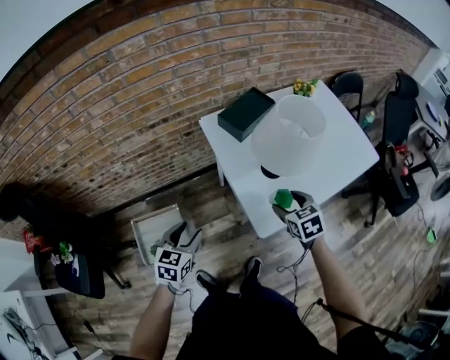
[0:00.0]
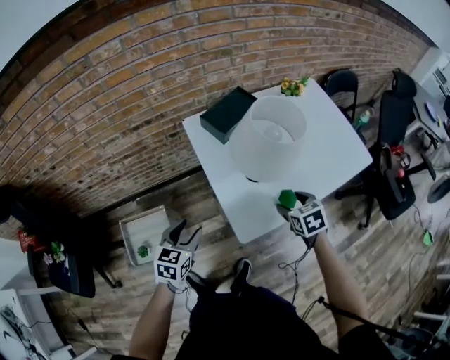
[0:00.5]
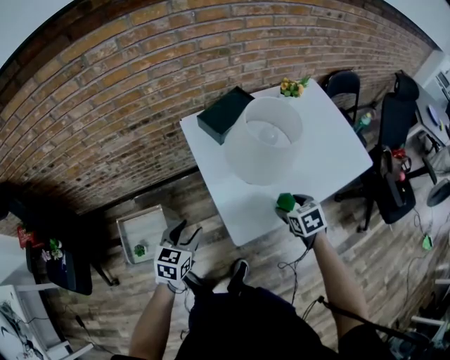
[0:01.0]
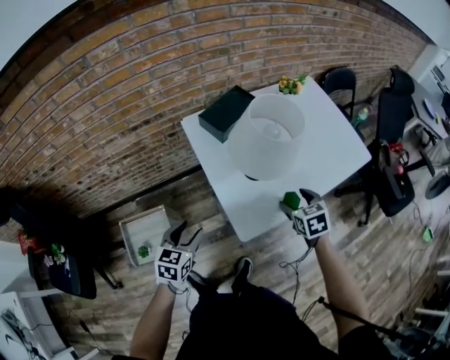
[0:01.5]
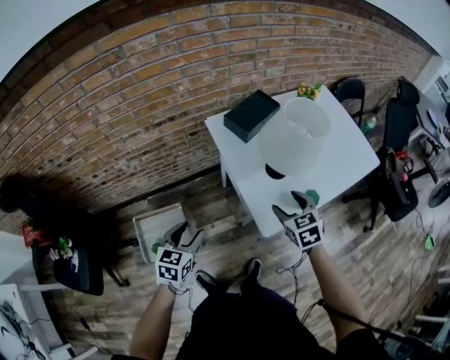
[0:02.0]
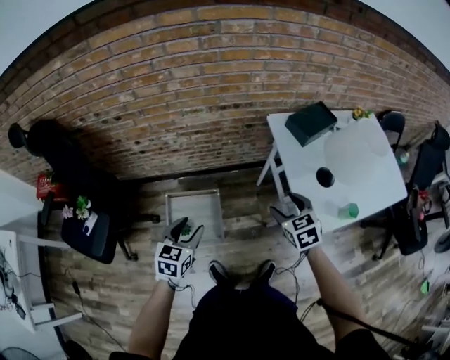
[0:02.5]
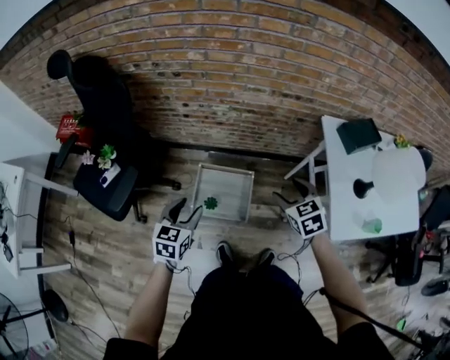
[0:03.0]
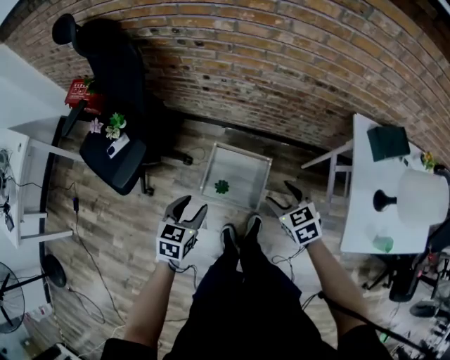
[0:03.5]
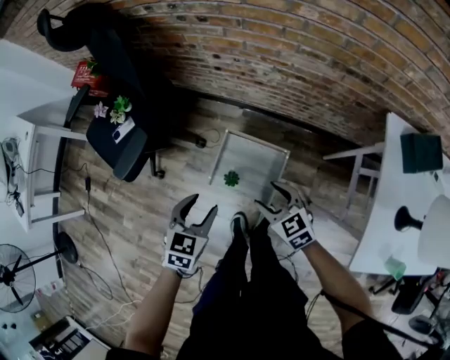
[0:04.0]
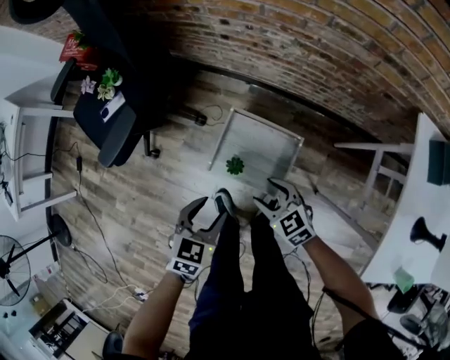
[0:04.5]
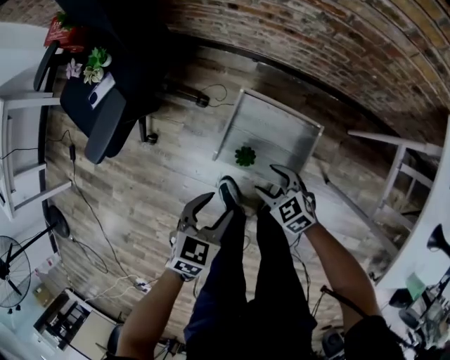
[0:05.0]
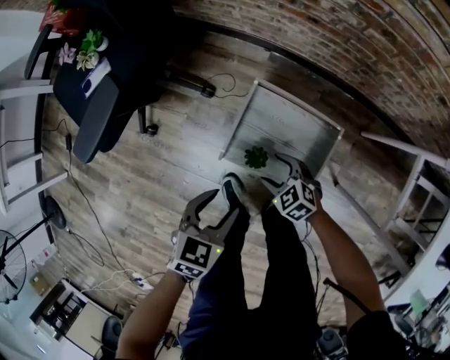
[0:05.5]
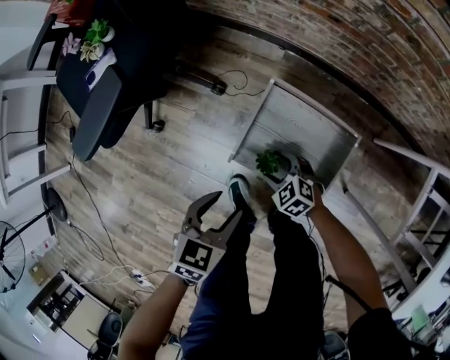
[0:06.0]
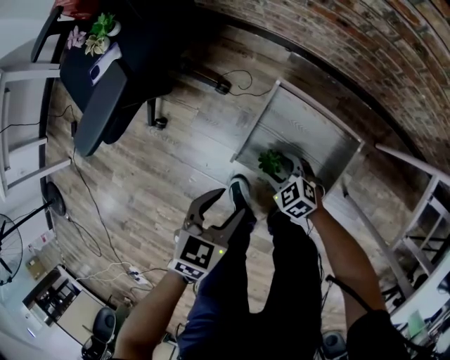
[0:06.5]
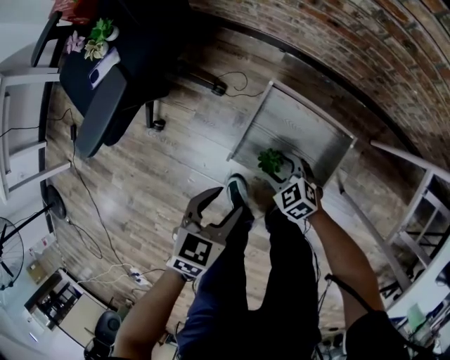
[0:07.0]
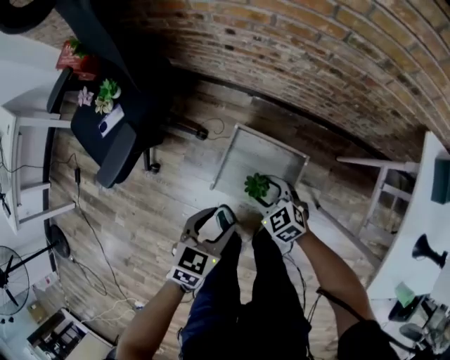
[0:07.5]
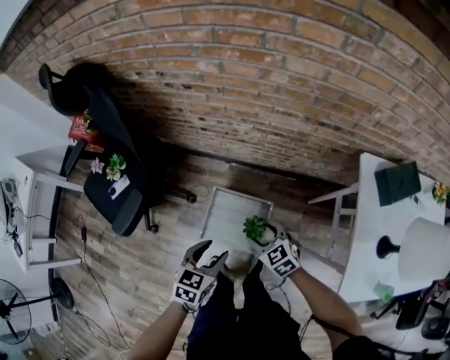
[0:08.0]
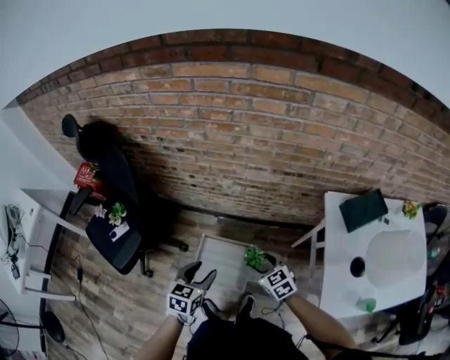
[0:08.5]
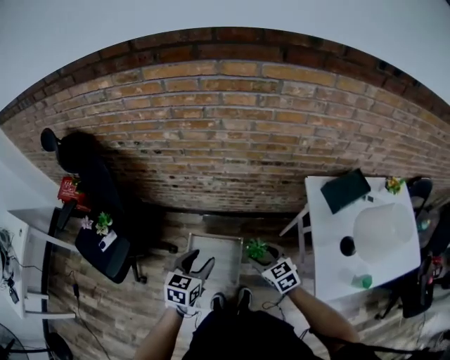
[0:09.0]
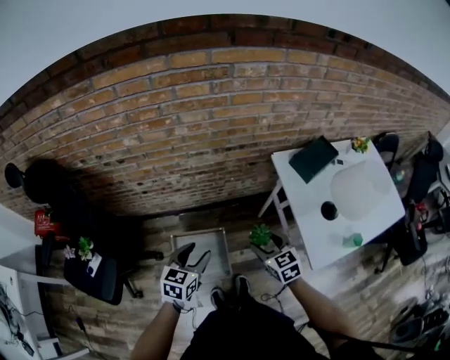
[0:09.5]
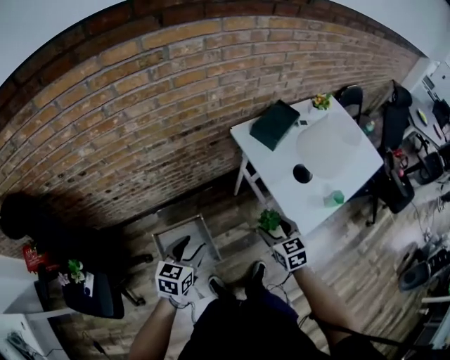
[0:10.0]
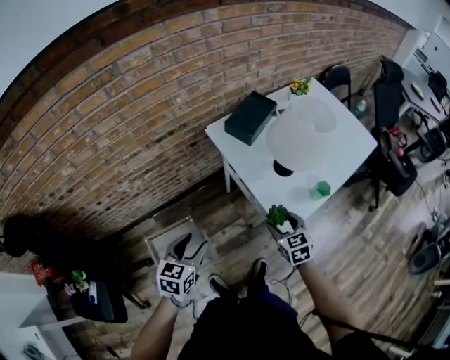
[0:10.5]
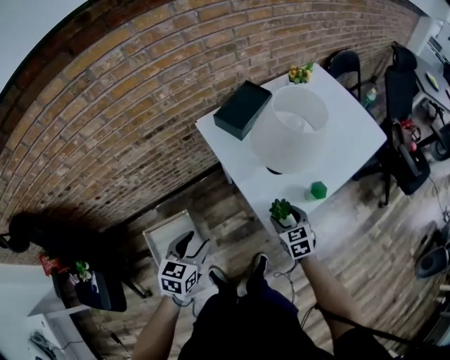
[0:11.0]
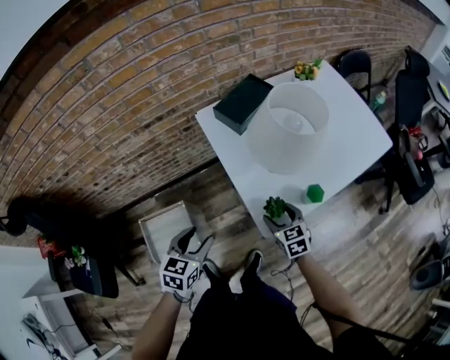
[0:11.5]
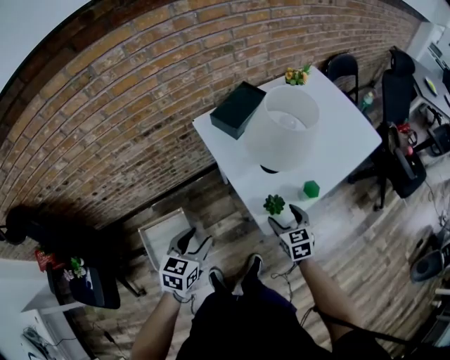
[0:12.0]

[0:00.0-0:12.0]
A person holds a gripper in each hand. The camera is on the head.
0:00.0 to 0:02.0: The right gripper moves approximately 10 cm to the right and comes back, while the left gripper goes to the right and returns, some 10 cm each way.
0:02.0 to 0:04.0: The right gripper changes place by some 60 cm, and turns by about 60 degrees; the left gripper ends up about 40 cm from where it was, and swivels approximately 40 degrees.
0:04.0 to 0:06.0: The grippers both shift downward by roughly 35 cm. The right gripper rotates some 30 degrees.
0:06.0 to 0:08.0: The left gripper travels upward and to the right by approximately 35 cm. The right gripper goes approximately 40 cm upward, and turns by some 30 degrees.
0:08.0 to 0:10.0: The right gripper shifts by approximately 35 cm, and rotates roughly 60 degrees. The left gripper changes place by approximately 20 cm, and turns by roughly 30 degrees.
0:10.0 to 0:12.0: The two grippers go some 25 cm to the right.

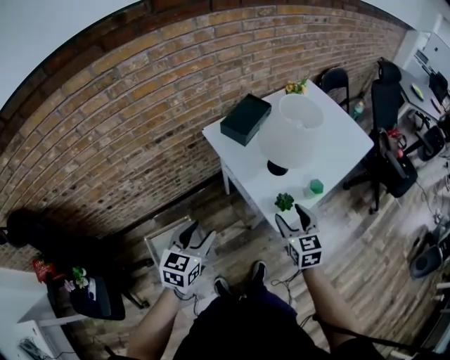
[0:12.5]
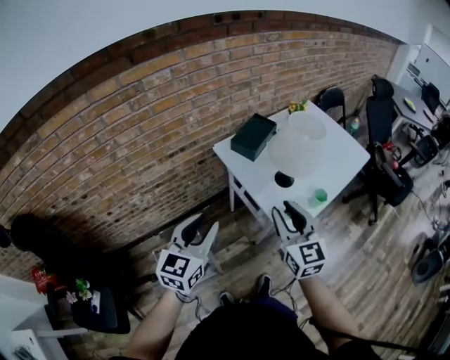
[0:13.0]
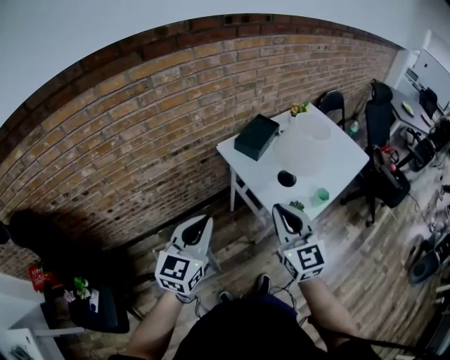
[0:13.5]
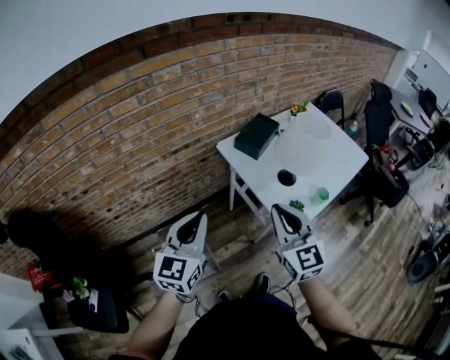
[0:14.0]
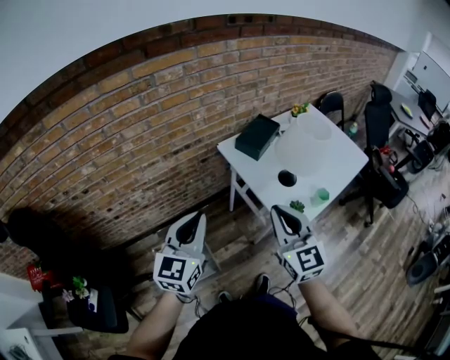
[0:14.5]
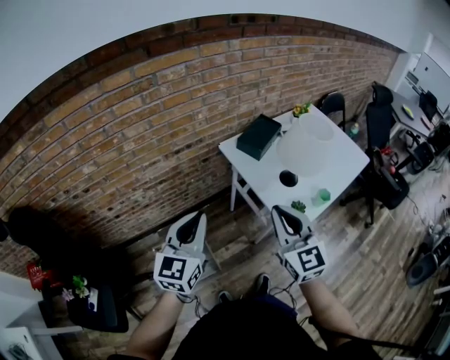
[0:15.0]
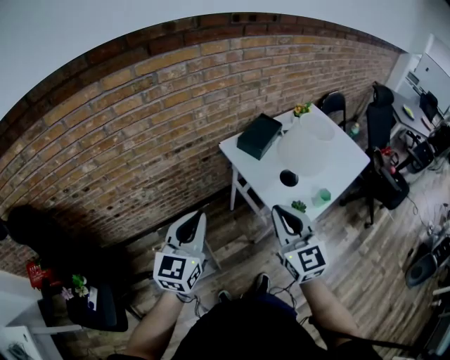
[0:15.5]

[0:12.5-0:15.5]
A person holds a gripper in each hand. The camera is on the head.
0:12.5 to 0:14.0: Both grippers travel together upward and to the left, roughly 20 cm. The left gripper changes its angle by roughly 20 degrees, and closes up, while the right gripper swivels roughly 20 degrees, and closes.
0:14.0 to 0:15.5: The grippers stay close to where they were, moving slightly.

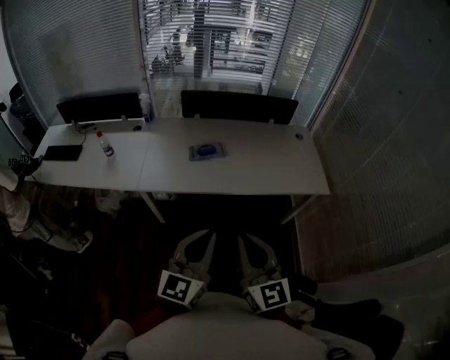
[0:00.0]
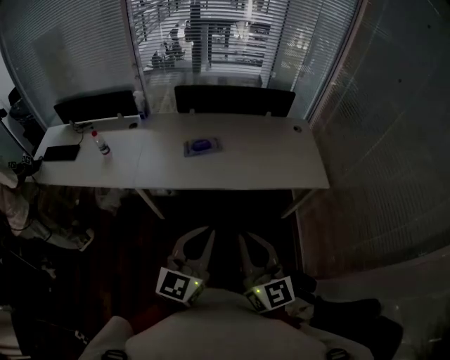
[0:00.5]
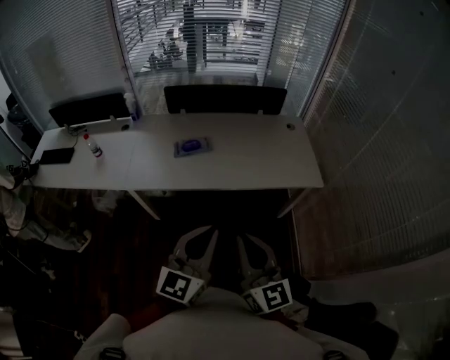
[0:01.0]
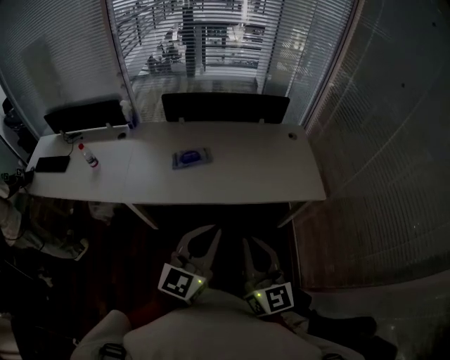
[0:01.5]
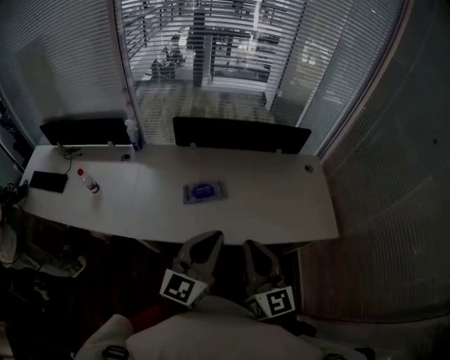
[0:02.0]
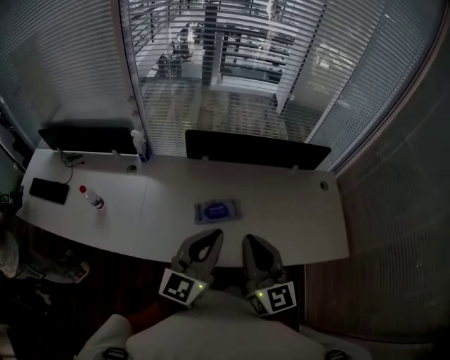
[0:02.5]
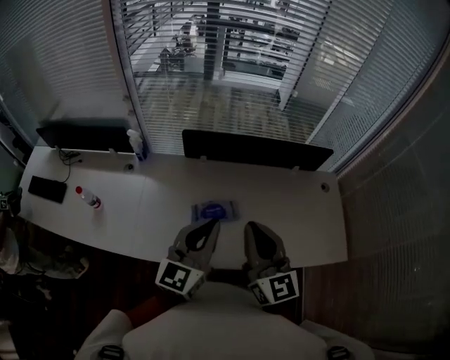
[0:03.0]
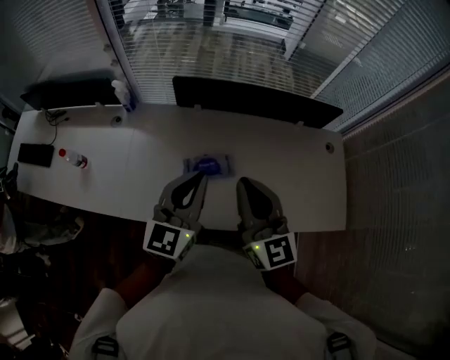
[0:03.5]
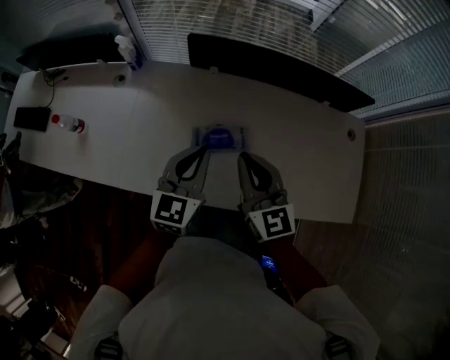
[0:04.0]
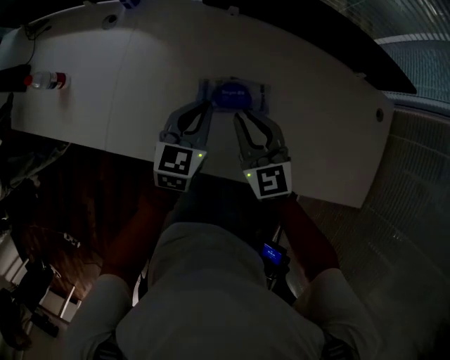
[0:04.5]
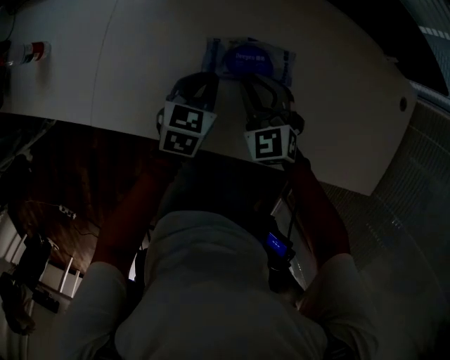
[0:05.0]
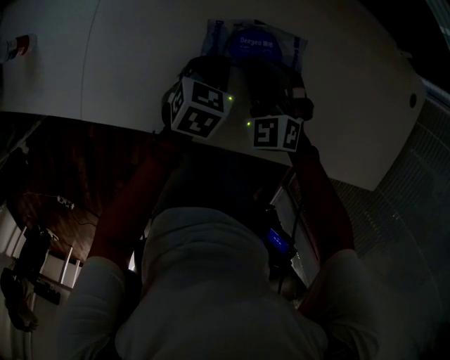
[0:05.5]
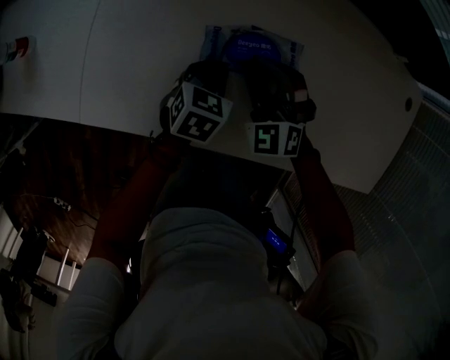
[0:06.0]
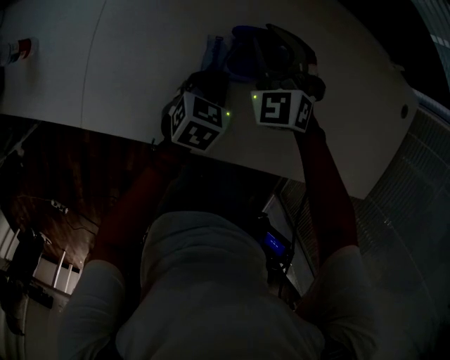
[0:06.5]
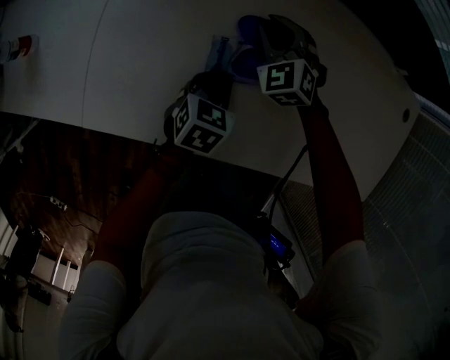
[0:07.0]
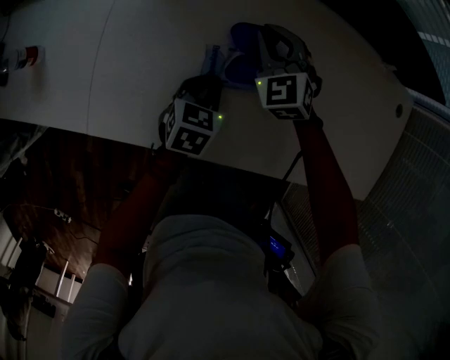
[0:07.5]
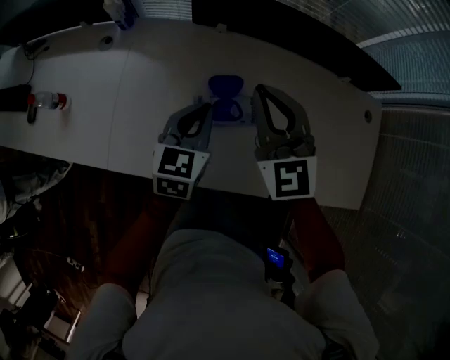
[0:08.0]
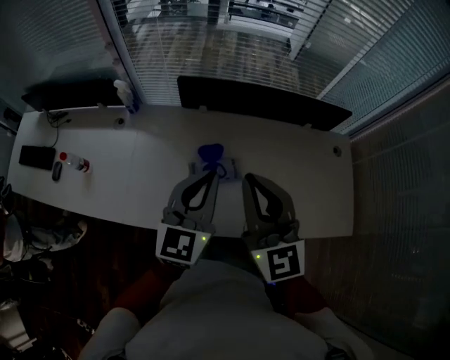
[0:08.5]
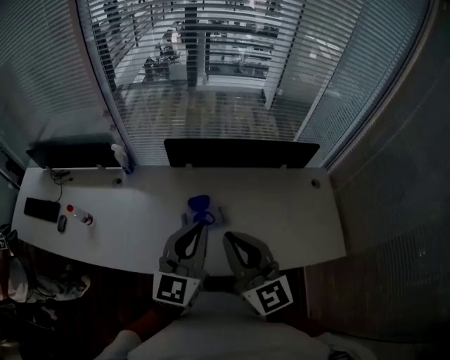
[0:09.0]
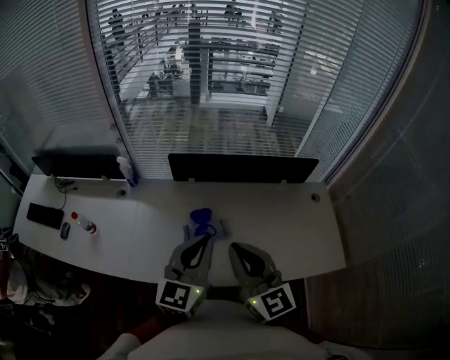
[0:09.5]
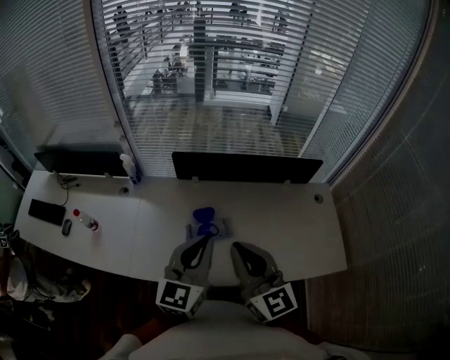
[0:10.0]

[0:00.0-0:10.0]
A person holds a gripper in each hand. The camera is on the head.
0:00.0 to 0:02.0: Both grippers travel together forward, approximately 25 cm.
0:02.0 to 0:04.0: The grippers both shift forward and downward by roughly 30 cm. The left gripper rotates some 20 degrees; the right gripper swivels some 20 degrees.
0:04.0 to 0:06.0: The grippers both shift downward by approximately 30 cm. The right gripper twists about 50 degrees counterclockwise, seen from behind, and opens up. The left gripper points its fingers some 40 degrees further downward.
0:06.0 to 0:08.0: Both grippers move upward, some 25 cm. The right gripper swivels some 40 degrees, and closes; the left gripper changes its angle by about 30 degrees.
0:08.0 to 0:10.0: The right gripper travels backward and upward by some 25 cm, and turns by approximately 20 degrees. Meanwhile the left gripper goes roughly 30 cm upward and backward, and changes its angle by some 30 degrees.

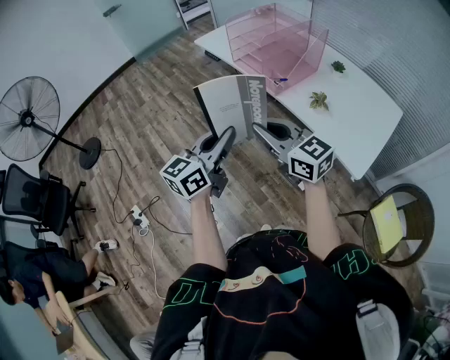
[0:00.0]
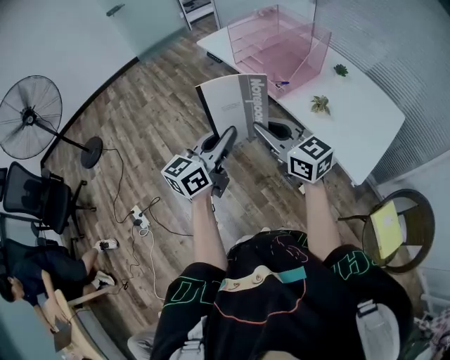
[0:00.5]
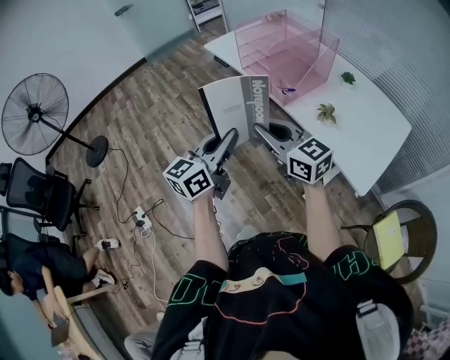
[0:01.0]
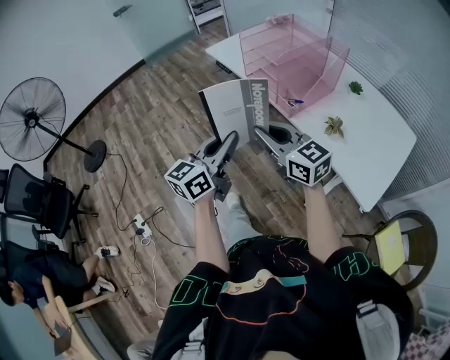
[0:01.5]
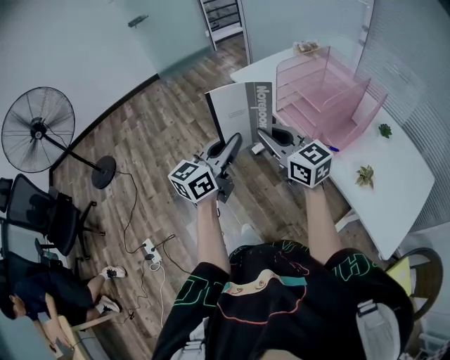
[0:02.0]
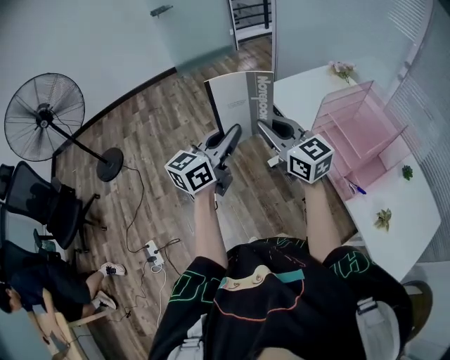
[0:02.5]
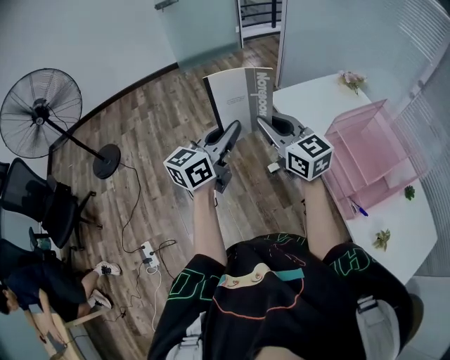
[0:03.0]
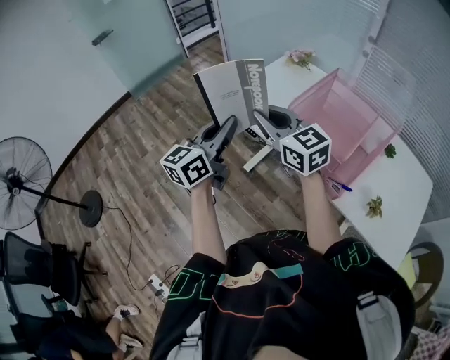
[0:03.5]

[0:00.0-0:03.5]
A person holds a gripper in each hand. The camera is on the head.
0:00.0 to 0:02.0: The two grippers go approximately 25 cm forward.
0:02.0 to 0:03.5: Both grippers move forward, some 25 cm.
